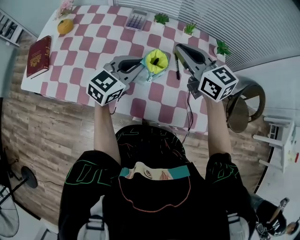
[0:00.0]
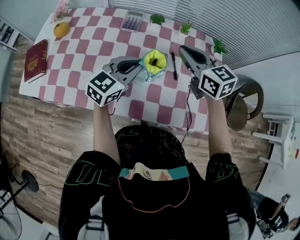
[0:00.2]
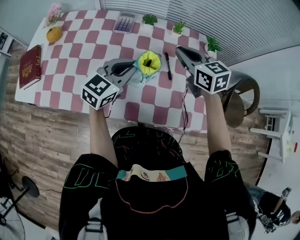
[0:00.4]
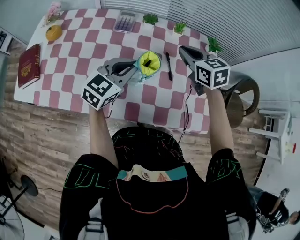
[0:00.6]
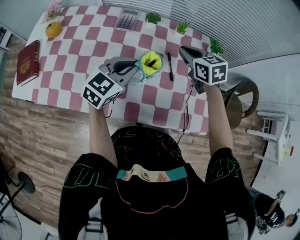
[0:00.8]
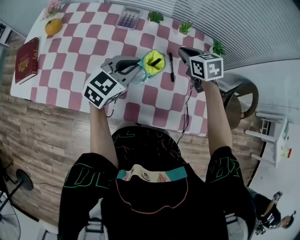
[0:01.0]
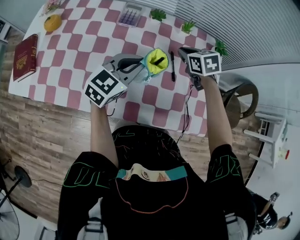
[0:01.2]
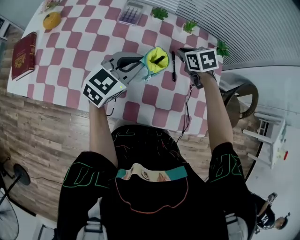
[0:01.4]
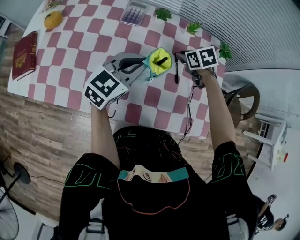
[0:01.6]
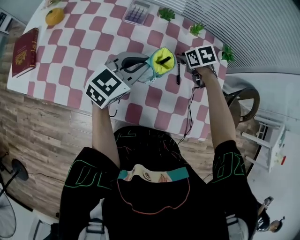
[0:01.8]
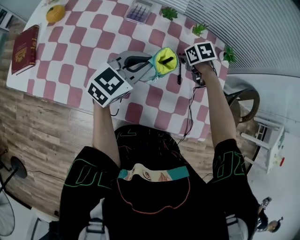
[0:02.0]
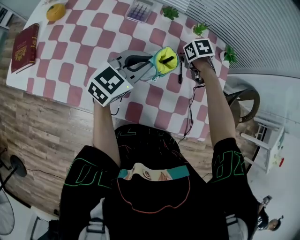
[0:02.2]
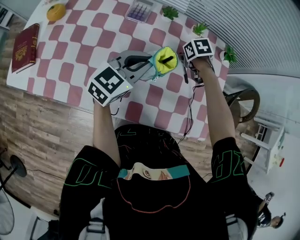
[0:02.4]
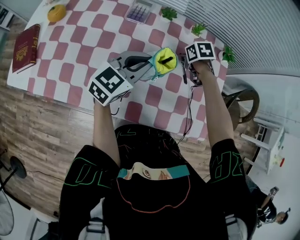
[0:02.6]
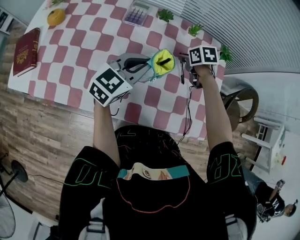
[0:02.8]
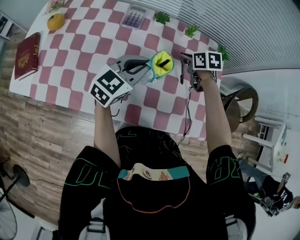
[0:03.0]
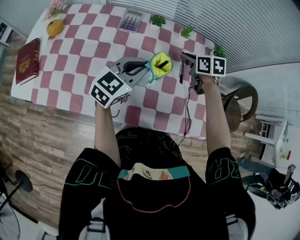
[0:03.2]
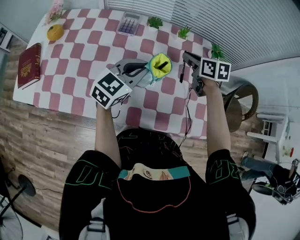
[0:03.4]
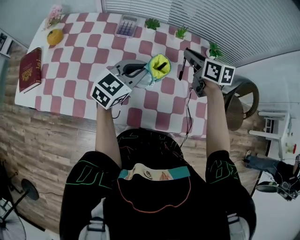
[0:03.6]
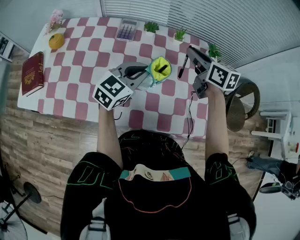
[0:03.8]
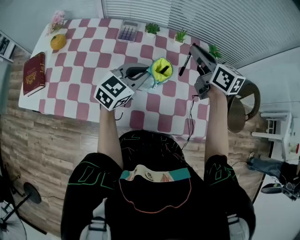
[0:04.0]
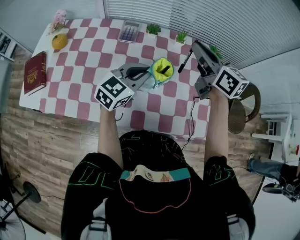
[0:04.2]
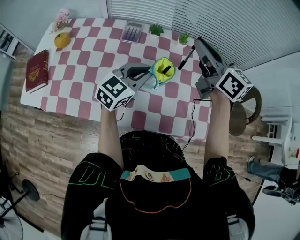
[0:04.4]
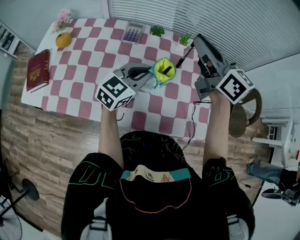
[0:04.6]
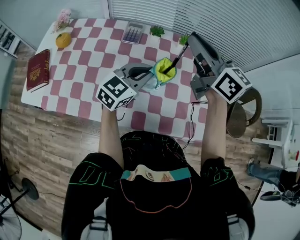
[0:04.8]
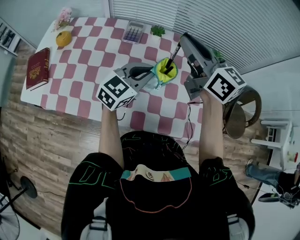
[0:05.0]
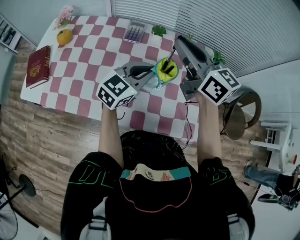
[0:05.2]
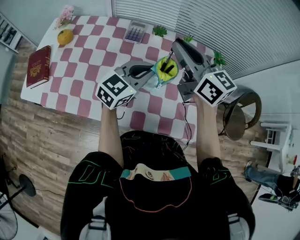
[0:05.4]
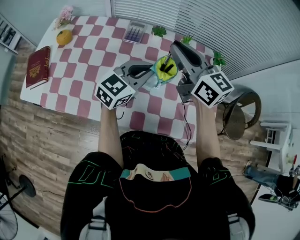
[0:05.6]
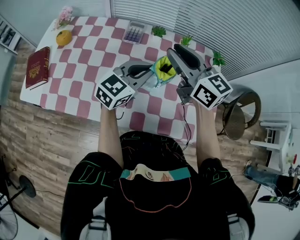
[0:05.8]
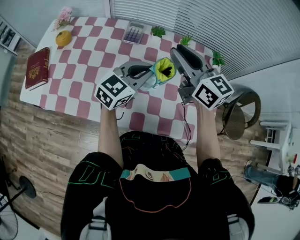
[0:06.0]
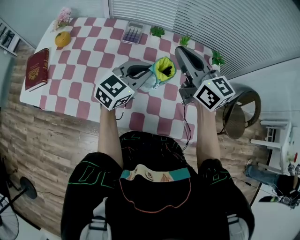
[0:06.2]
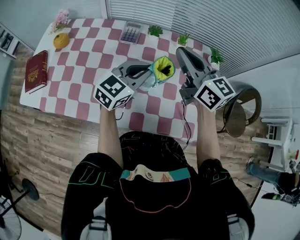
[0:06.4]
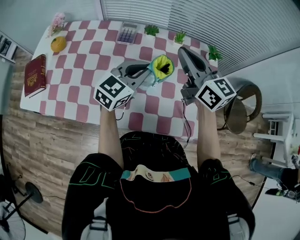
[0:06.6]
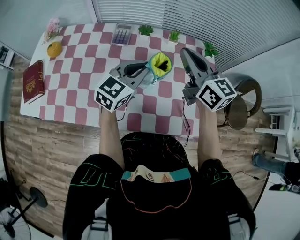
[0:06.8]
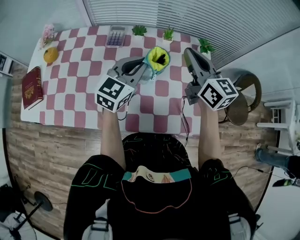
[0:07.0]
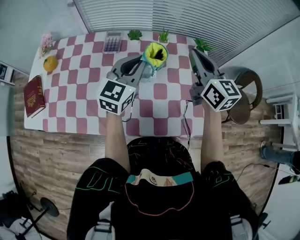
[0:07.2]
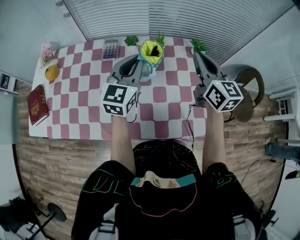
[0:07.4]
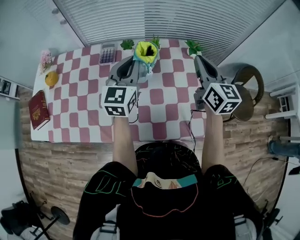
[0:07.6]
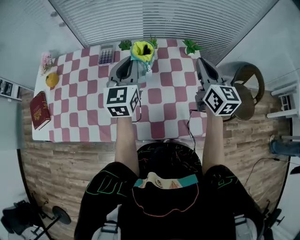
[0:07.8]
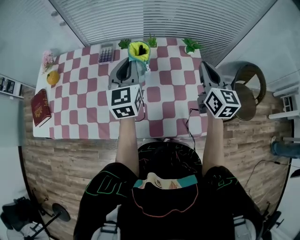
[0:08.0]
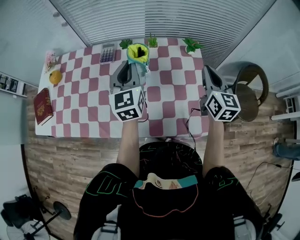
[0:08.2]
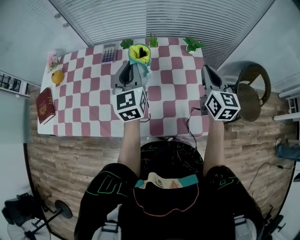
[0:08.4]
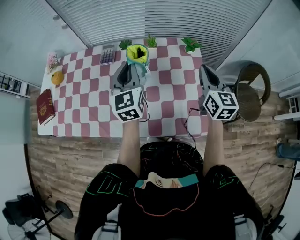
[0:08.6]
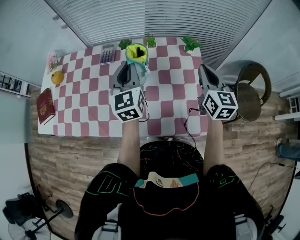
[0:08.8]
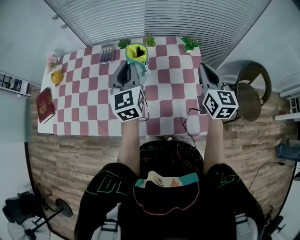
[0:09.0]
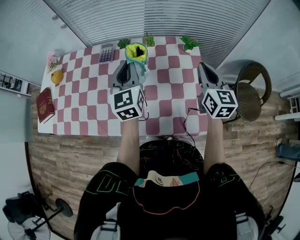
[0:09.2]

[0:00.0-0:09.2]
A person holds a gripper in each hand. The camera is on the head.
0:00.0 to 0:01.6: The right gripper heads downward and forward, covering about 25 cm, and angles its fingers downward, by some 50 degrees.
0:01.6 to 0:03.0: The grippers move only a little.
0:03.0 to 0:04.6: The right gripper shifts roughly 30 cm upward, and tilts its fingers roughly 60 degrees upward.
0:04.6 to 0:06.2: The right gripper heads downward, covering approximately 5 cm.
0:06.2 to 0:07.6: The left gripper shifts approximately 10 cm upward and forward, and turns by roughly 20 degrees. The right gripper shifts roughly 20 cm to the right, and turns by some 30 degrees.
0:07.6 to 0:09.2: The left gripper swivels roughly 20 degrees, while the right gripper shifts about 5 cm to the right.

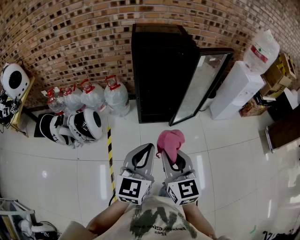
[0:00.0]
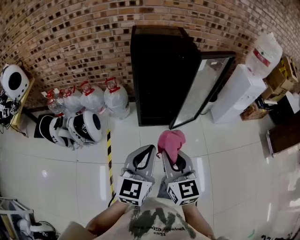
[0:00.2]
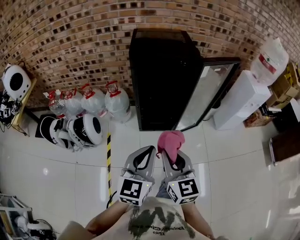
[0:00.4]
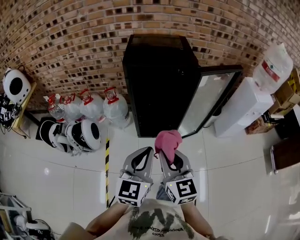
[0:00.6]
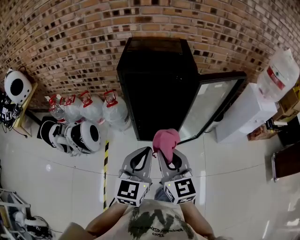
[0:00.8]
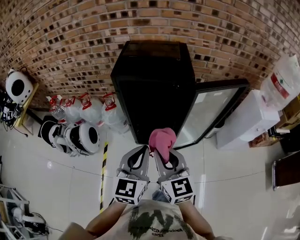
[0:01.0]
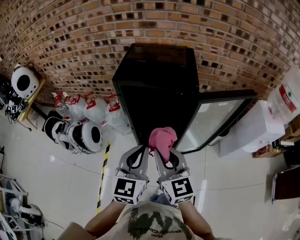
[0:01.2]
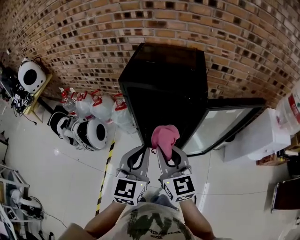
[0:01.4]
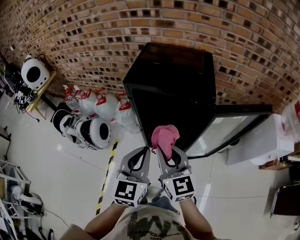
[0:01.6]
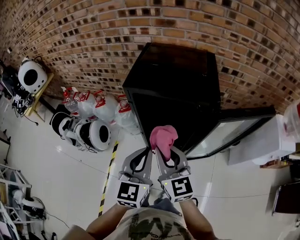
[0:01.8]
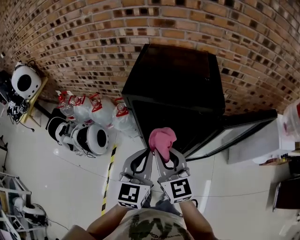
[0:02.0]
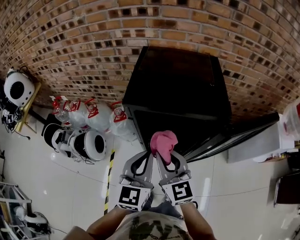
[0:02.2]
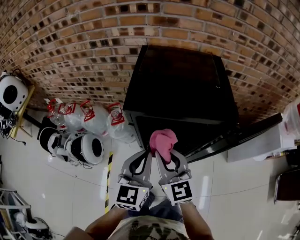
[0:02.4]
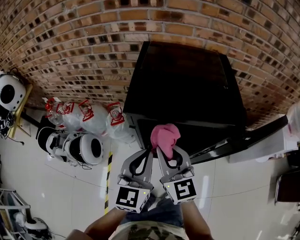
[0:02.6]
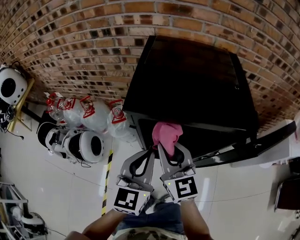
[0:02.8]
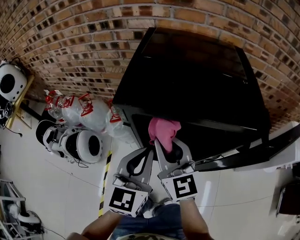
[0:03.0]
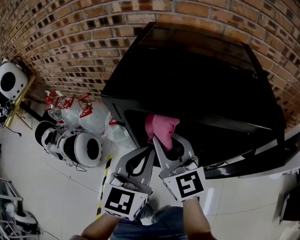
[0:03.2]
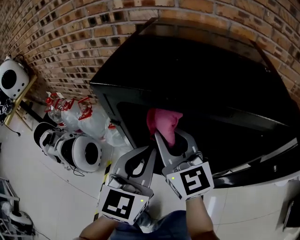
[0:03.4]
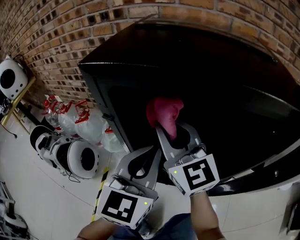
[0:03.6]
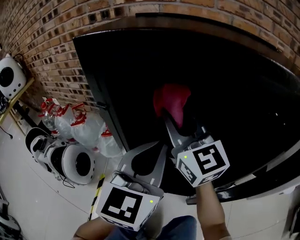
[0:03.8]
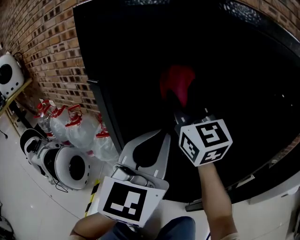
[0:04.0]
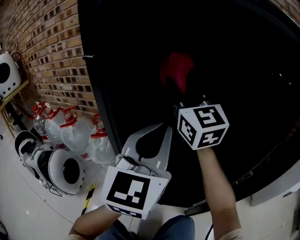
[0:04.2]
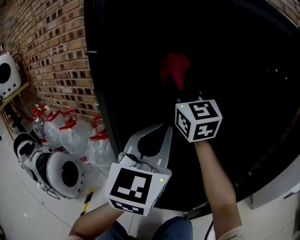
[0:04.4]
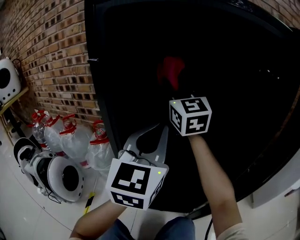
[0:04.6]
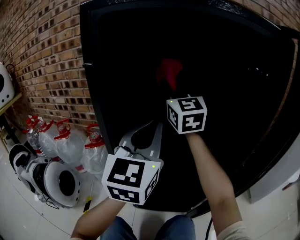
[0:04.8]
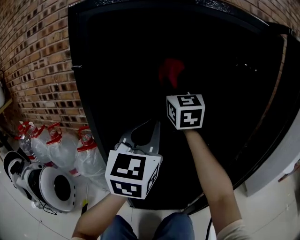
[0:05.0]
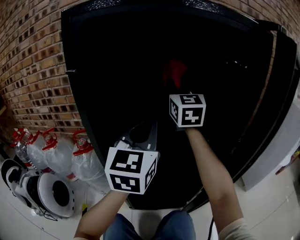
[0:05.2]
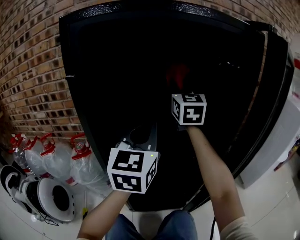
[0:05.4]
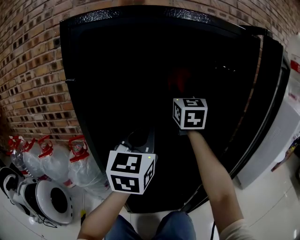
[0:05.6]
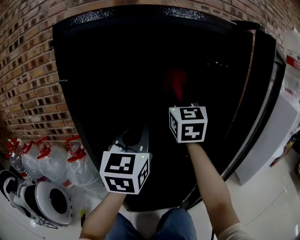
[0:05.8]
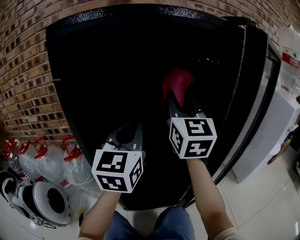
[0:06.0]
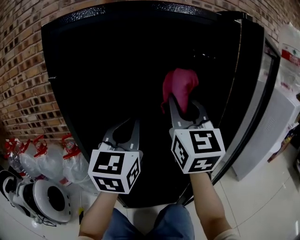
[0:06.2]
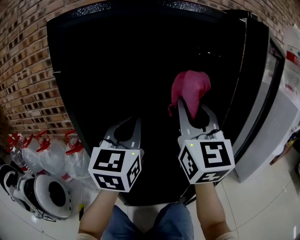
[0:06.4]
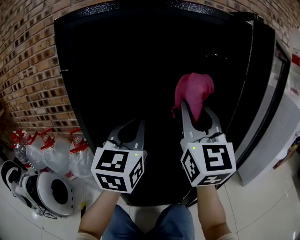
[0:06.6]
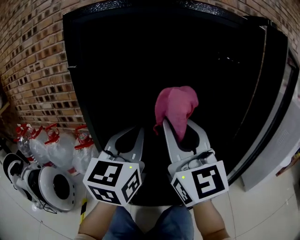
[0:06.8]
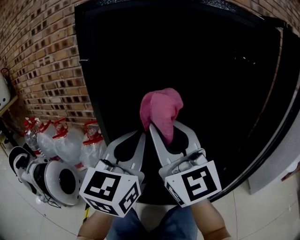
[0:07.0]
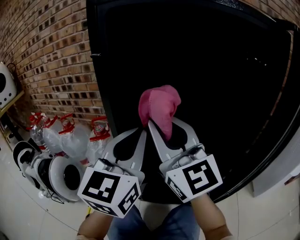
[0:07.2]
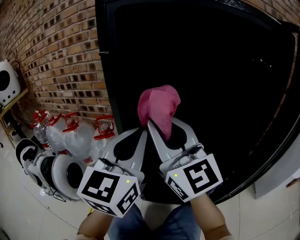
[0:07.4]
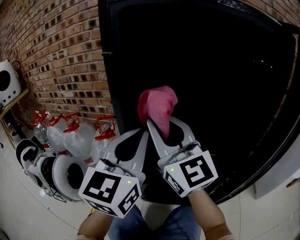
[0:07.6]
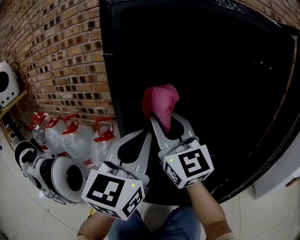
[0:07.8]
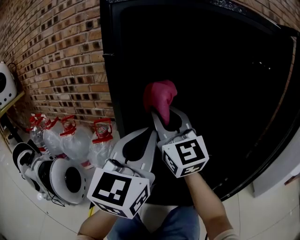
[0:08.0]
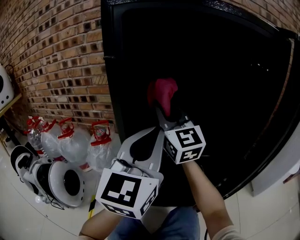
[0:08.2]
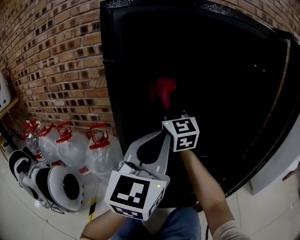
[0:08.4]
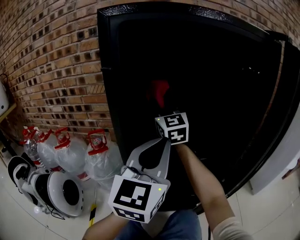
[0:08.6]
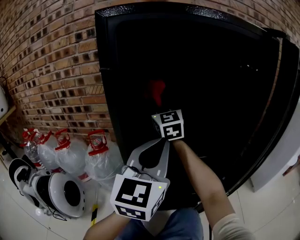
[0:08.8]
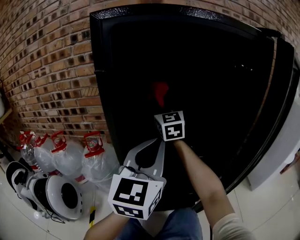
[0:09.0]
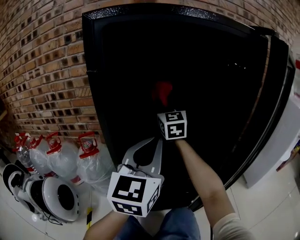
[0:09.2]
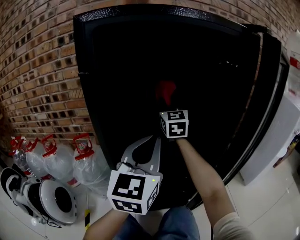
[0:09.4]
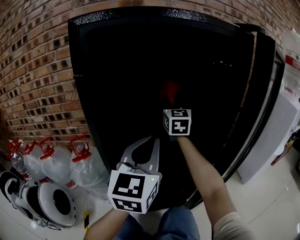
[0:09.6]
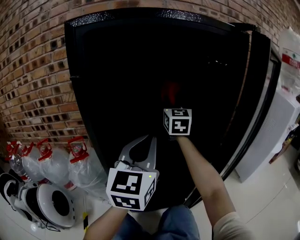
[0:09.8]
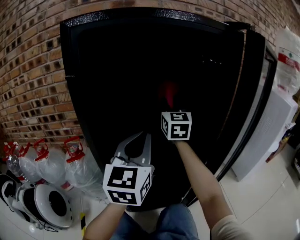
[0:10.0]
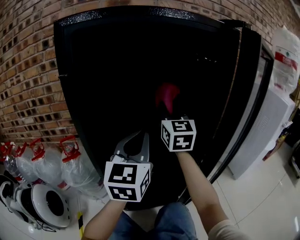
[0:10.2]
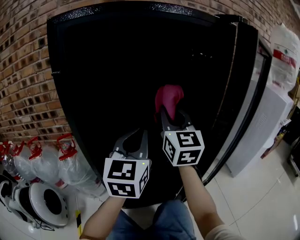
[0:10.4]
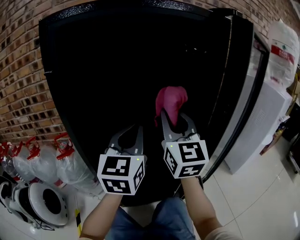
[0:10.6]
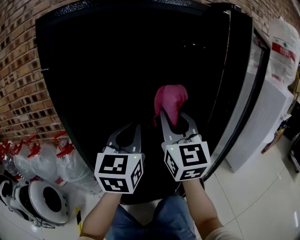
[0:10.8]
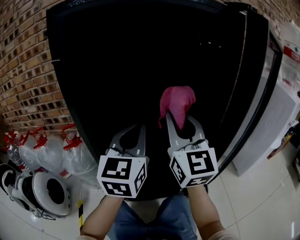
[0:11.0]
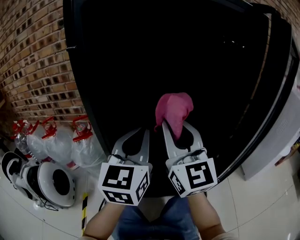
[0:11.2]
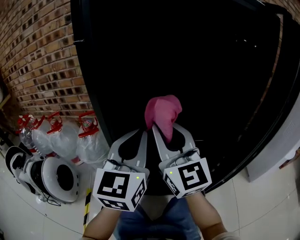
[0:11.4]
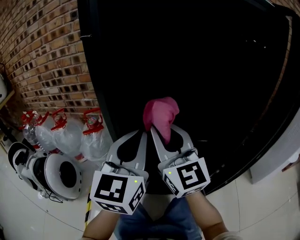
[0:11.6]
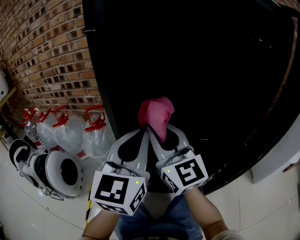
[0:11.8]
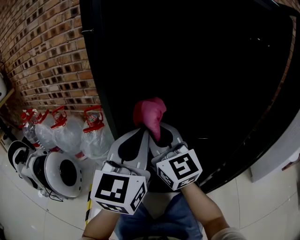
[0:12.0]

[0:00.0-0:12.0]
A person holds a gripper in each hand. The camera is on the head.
0:00.0 to 0:01.6: The left gripper is displaced forward and to the right by approximately 30 cm, and changes its angle by roughly 20 degrees. Meanwhile the right gripper moves forward, some 30 cm, and turns by approximately 20 degrees.
0:01.6 to 0:03.0: The two grippers go approximately 20 cm forward and downward.
0:03.0 to 0:04.4: The left gripper shifts approximately 15 cm downward, forward and to the right, and swivels approximately 20 degrees, while the right gripper travels forward and downward by about 20 cm, and turns by roughly 20 degrees.
0:04.4 to 0:06.0: The right gripper goes about 20 cm to the right and backward, and turns by roughly 30 degrees.
0:06.0 to 0:07.6: The left gripper heads to the left and backward, covering approximately 10 cm; the right gripper moves to the left and backward, approximately 20 cm, and turns by approximately 40 degrees.
0:07.6 to 0:09.0: The right gripper heads forward, covering about 20 cm, and rotates some 30 degrees; the left gripper moves to the right, some 5 cm.
0:09.0 to 0:10.4: The left gripper moves to the right, about 5 cm. The right gripper is displaced to the right and backward by some 20 cm.
0:10.4 to 0:12.0: The right gripper shifts about 20 cm to the left and downward, and turns by about 30 degrees, while the left gripper moves to the left, about 10 cm.

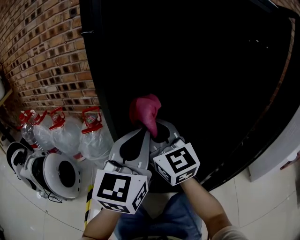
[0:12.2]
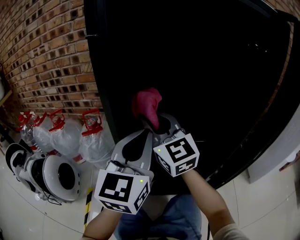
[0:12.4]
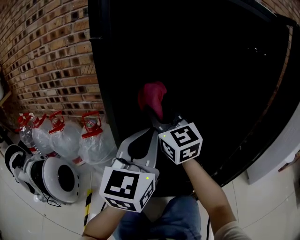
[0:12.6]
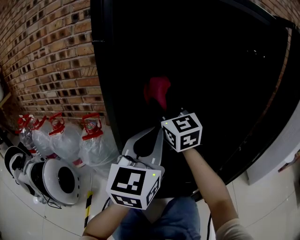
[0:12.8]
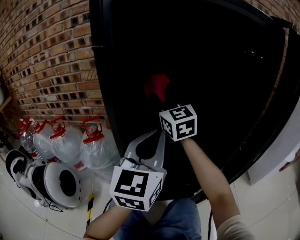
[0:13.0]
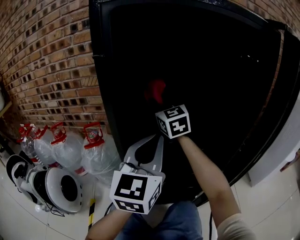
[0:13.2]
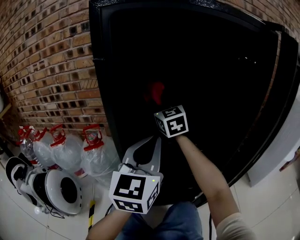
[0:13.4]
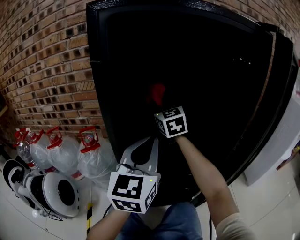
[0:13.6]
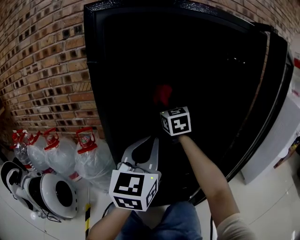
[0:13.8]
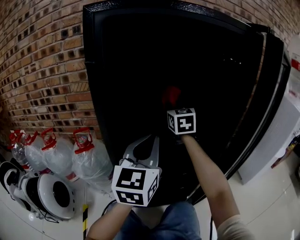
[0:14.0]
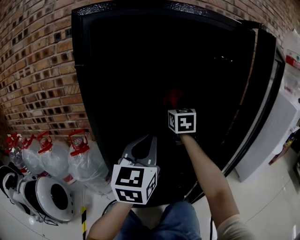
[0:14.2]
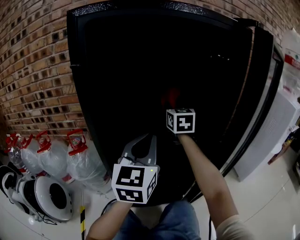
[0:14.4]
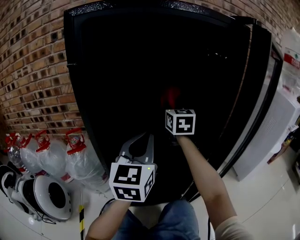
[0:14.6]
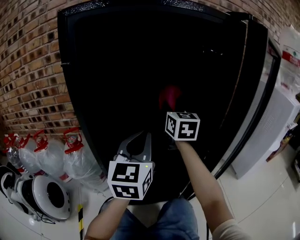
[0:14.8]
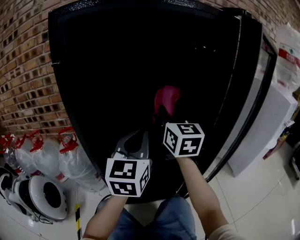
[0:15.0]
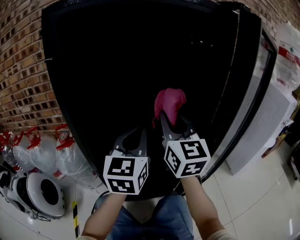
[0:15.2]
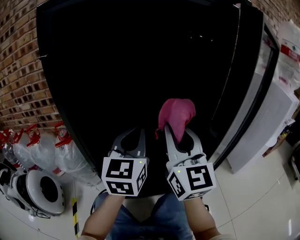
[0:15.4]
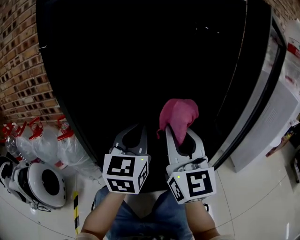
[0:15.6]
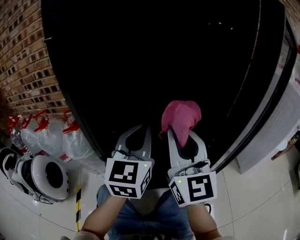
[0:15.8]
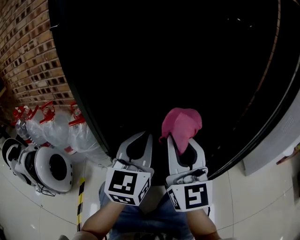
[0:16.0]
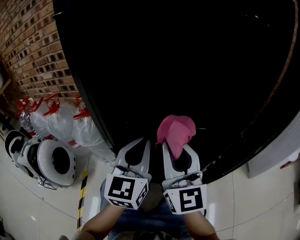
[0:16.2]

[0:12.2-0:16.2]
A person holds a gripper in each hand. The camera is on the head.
0:12.2 to 0:13.6: The right gripper heads forward, covering about 20 cm, and rotates roughly 20 degrees.
0:13.6 to 0:14.8: The left gripper is displaced to the right by roughly 5 cm, while the right gripper goes about 15 cm to the right, and changes its angle by roughly 20 degrees.
0:14.8 to 0:16.2: The left gripper heads downward, covering approximately 10 cm. The right gripper shifts some 20 cm backward, and turns by roughly 20 degrees.
